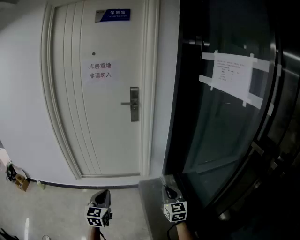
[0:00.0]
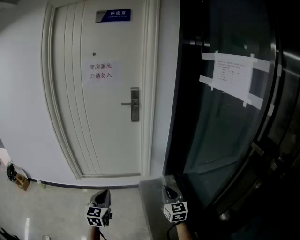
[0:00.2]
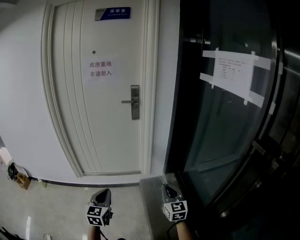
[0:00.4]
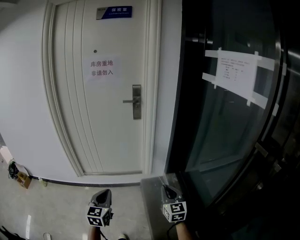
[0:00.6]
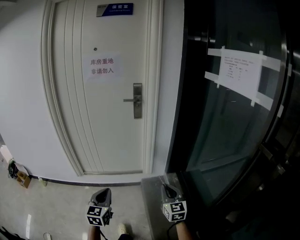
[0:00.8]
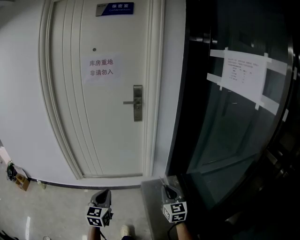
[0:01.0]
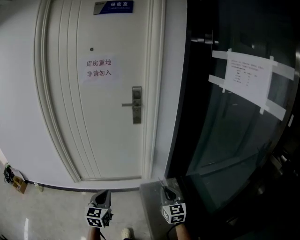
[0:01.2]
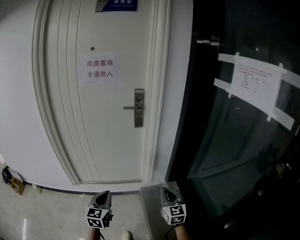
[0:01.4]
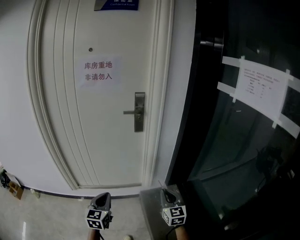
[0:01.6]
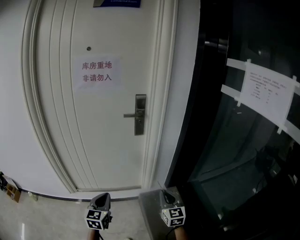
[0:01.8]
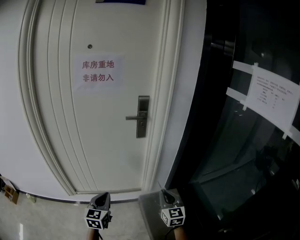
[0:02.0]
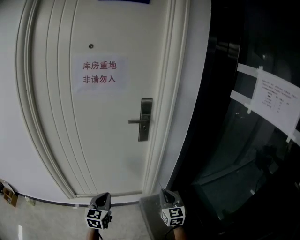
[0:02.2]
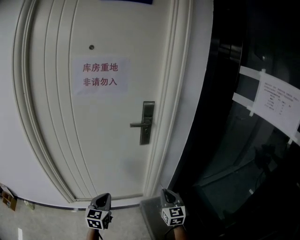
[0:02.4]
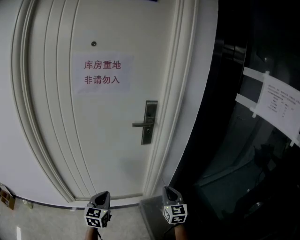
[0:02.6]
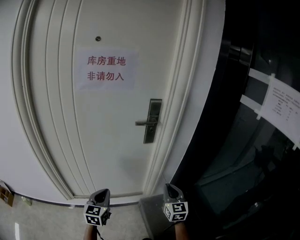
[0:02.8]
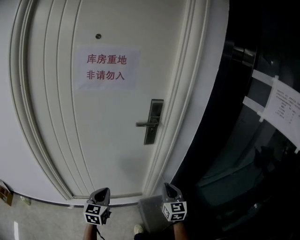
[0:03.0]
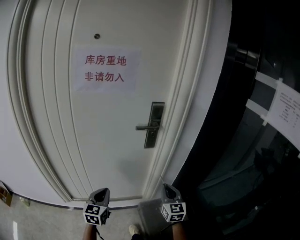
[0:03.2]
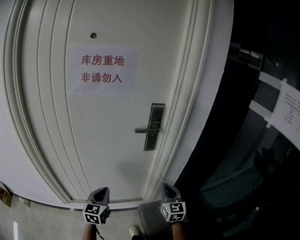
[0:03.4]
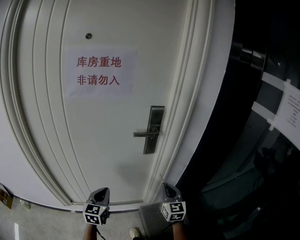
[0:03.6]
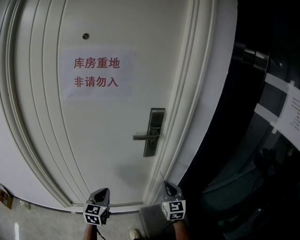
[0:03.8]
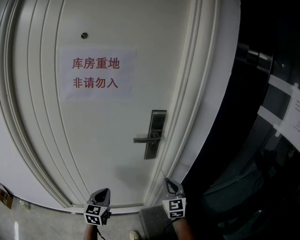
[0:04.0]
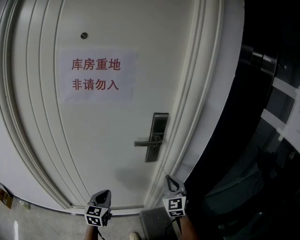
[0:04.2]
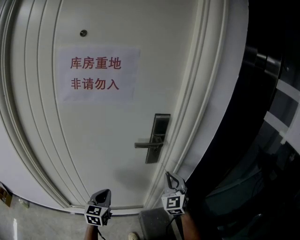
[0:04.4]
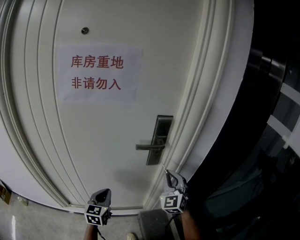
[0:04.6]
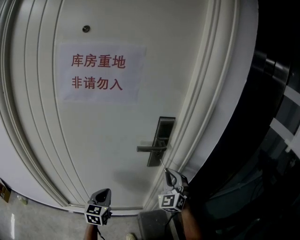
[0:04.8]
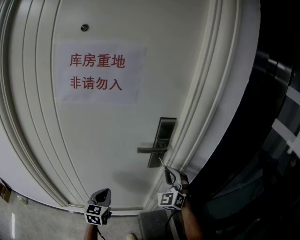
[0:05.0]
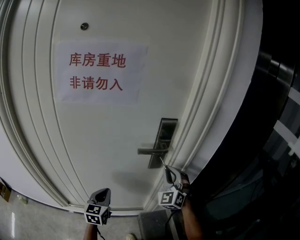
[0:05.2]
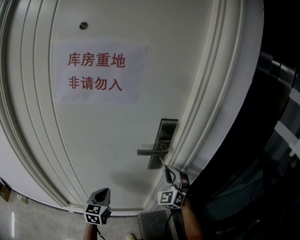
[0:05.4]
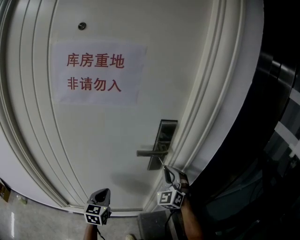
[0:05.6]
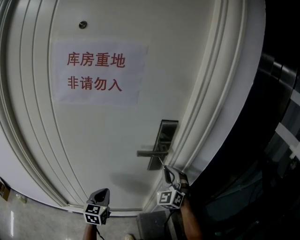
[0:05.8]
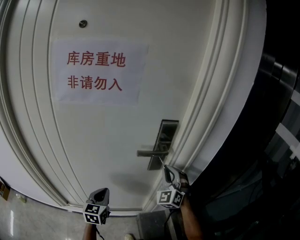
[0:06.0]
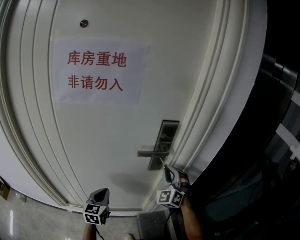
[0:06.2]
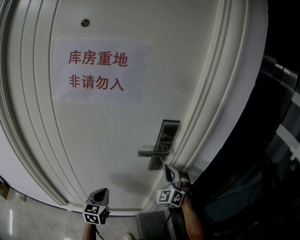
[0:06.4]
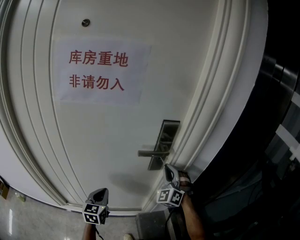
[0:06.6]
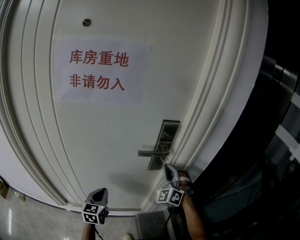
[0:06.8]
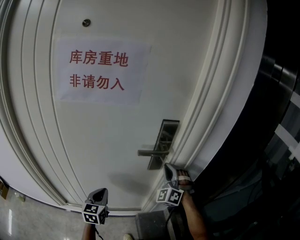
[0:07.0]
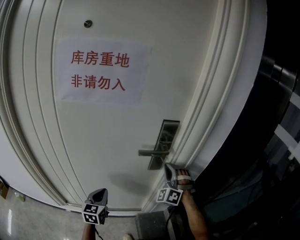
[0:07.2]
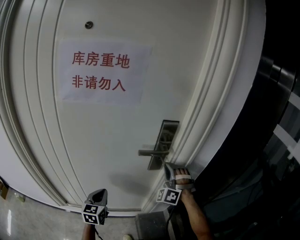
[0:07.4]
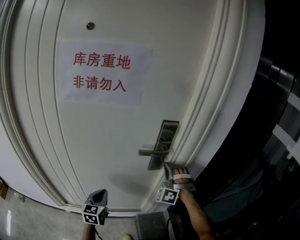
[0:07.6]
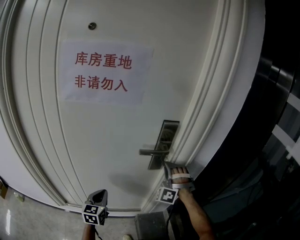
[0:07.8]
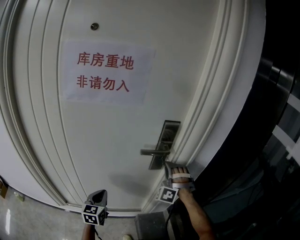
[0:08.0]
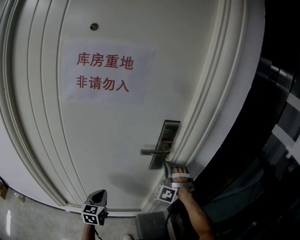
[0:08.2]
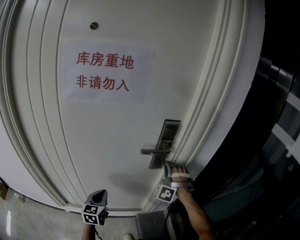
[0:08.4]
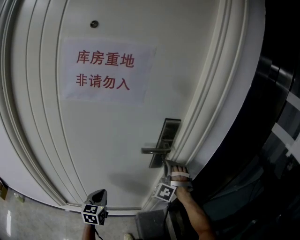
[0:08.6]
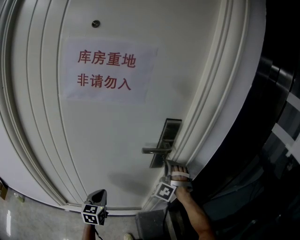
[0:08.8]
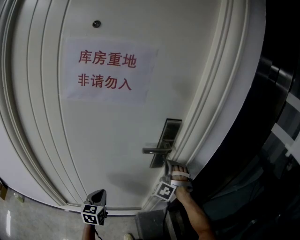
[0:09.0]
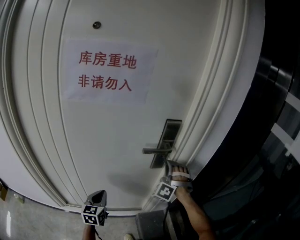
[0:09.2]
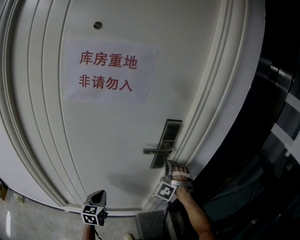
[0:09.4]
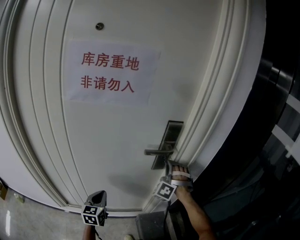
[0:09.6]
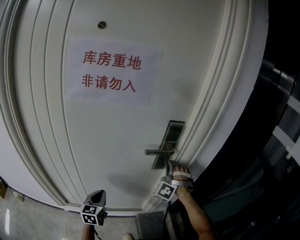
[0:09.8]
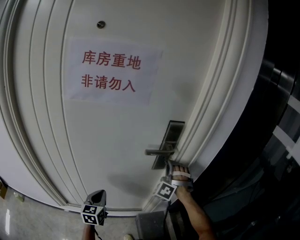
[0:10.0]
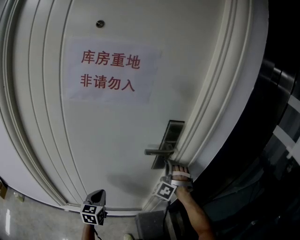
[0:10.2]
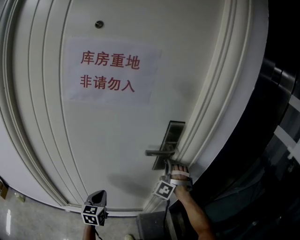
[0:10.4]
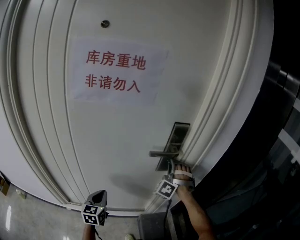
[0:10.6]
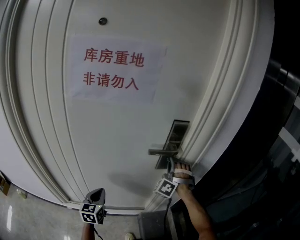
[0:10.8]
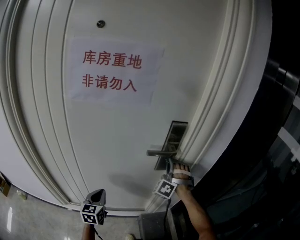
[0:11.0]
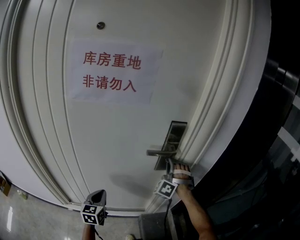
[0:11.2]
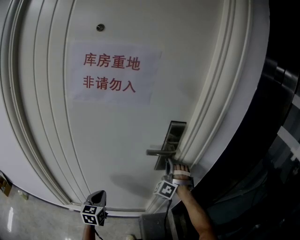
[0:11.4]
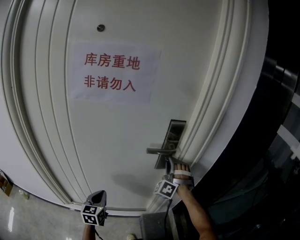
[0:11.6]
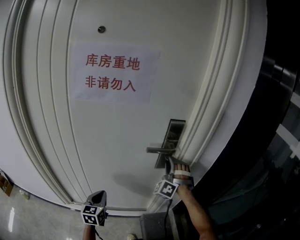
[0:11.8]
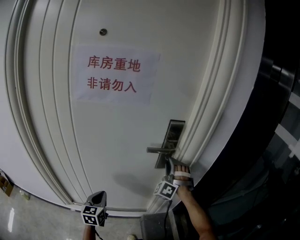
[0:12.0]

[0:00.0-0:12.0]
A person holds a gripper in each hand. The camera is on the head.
0:00.0 to 0:01.6: The grippers both shift forward by some 15 cm.
0:01.6 to 0:03.0: The two grippers go about 20 cm forward and to the left.
0:03.0 to 0:04.4: Both grippers travel together forward, approximately 15 cm. The right gripper swivels about 30 degrees.
0:04.4 to 0:06.0: The left gripper travels forward by about 5 cm, while the right gripper heads forward, covering approximately 10 cm, and rotates some 20 degrees.
0:06.0 to 0:07.6: The right gripper swivels approximately 40 degrees.
0:07.6 to 0:10.4: The grippers move only a little.
0:10.4 to 0:12.0: The right gripper opens up.

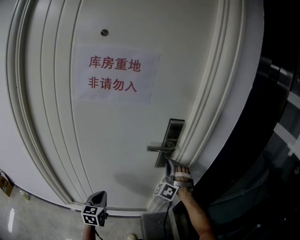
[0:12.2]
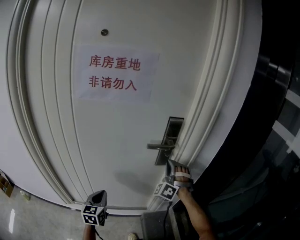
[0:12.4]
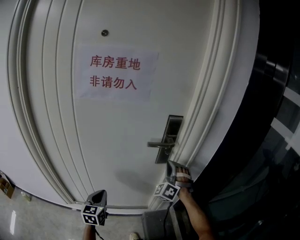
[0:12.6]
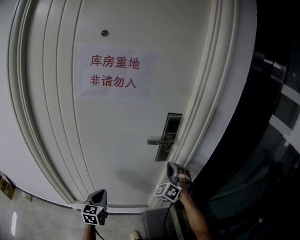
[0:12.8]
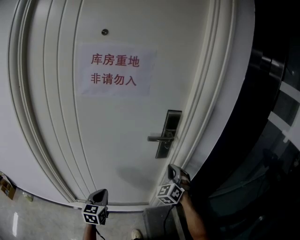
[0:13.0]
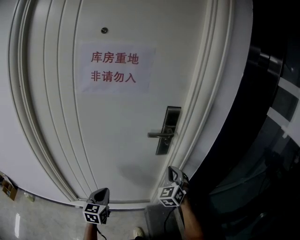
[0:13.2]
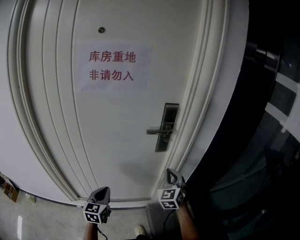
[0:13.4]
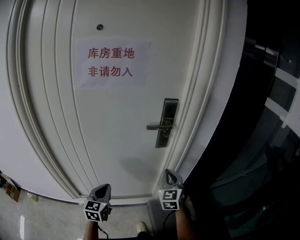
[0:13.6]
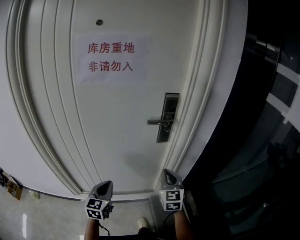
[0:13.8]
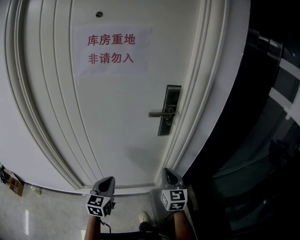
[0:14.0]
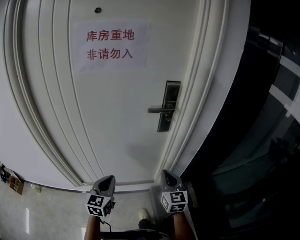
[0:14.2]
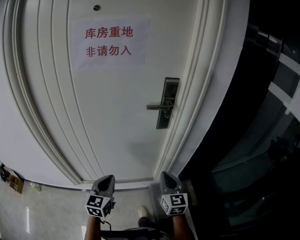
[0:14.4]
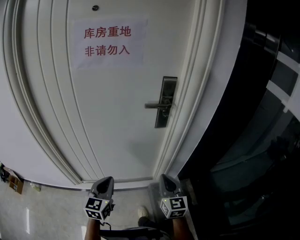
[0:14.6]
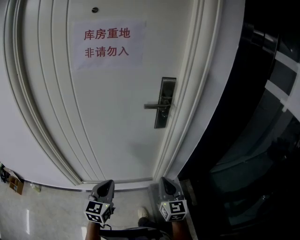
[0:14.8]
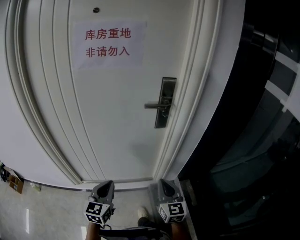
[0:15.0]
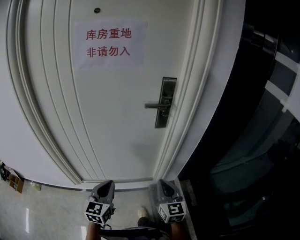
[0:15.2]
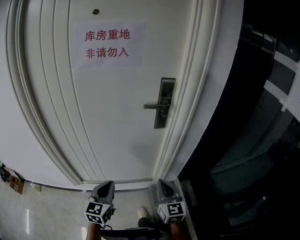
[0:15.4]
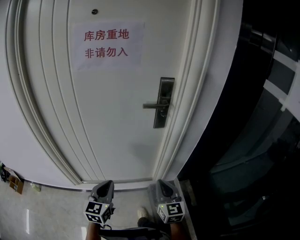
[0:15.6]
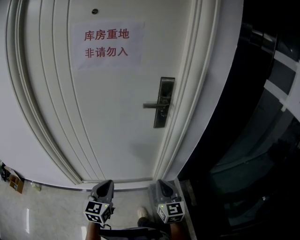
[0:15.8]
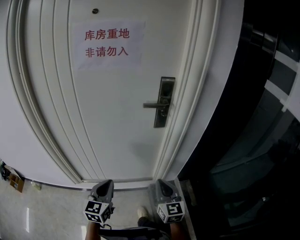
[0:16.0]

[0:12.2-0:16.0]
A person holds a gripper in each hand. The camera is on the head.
0:12.2 to 0:13.4: The left gripper heads backward, covering approximately 5 cm. Meanwhile the right gripper is displaced backward by some 15 cm, and rolls clockwise, seen from behind, by about 50 degrees.
0:13.4 to 0:14.8: The left gripper goes some 10 cm backward; the right gripper shifts about 15 cm backward, and turns by about 30 degrees.
0:14.8 to 0:16.0: The grippers stay close to where they were, moving slightly.

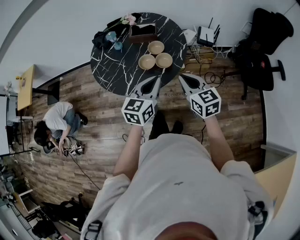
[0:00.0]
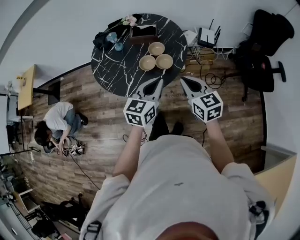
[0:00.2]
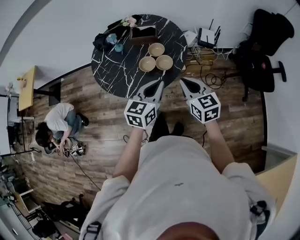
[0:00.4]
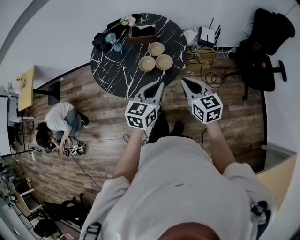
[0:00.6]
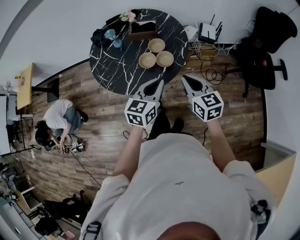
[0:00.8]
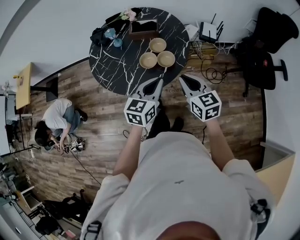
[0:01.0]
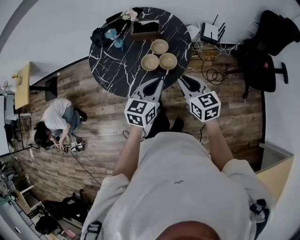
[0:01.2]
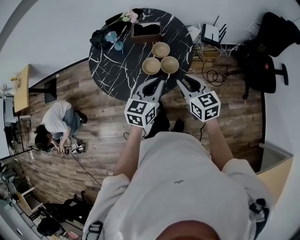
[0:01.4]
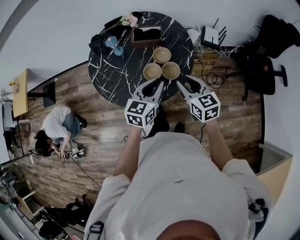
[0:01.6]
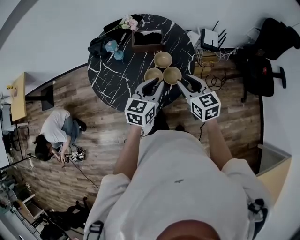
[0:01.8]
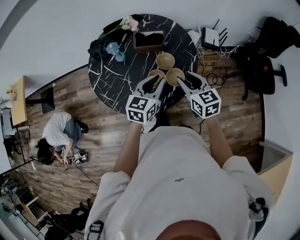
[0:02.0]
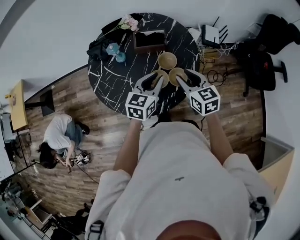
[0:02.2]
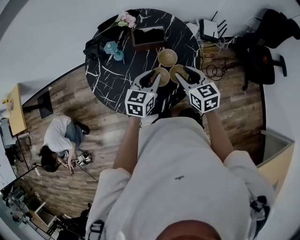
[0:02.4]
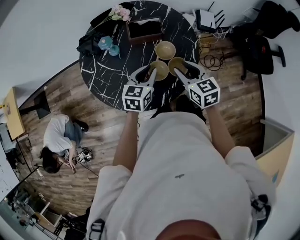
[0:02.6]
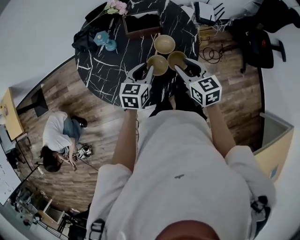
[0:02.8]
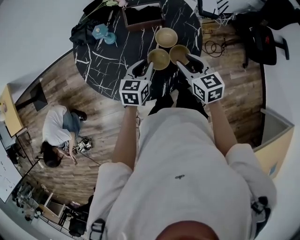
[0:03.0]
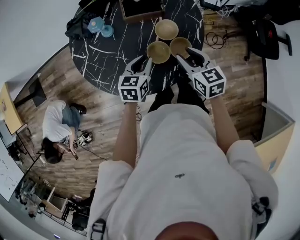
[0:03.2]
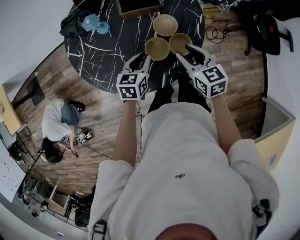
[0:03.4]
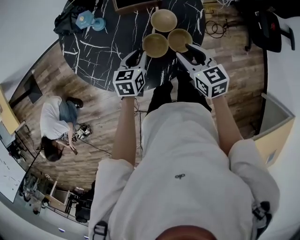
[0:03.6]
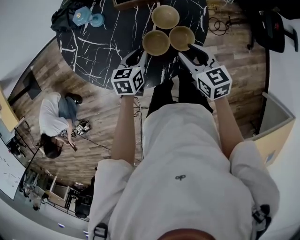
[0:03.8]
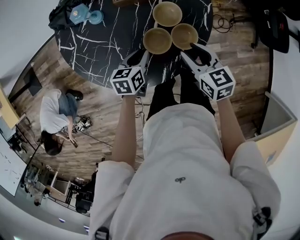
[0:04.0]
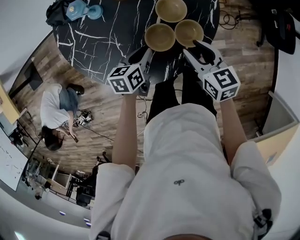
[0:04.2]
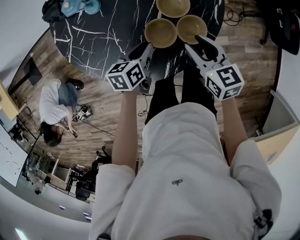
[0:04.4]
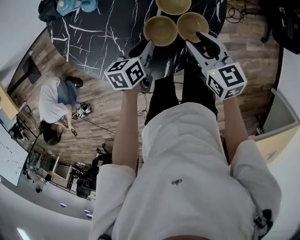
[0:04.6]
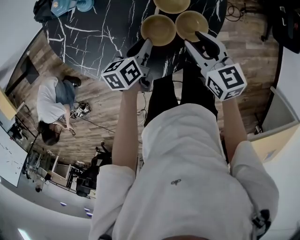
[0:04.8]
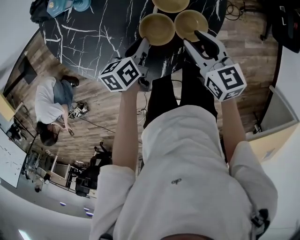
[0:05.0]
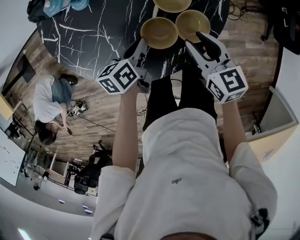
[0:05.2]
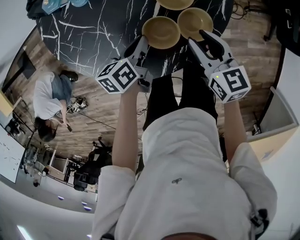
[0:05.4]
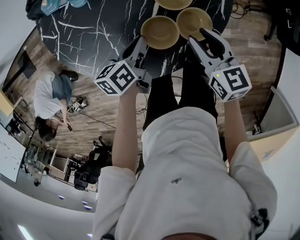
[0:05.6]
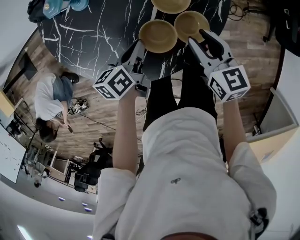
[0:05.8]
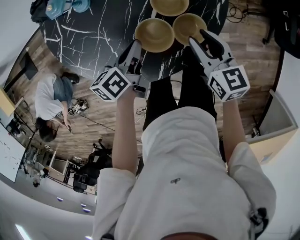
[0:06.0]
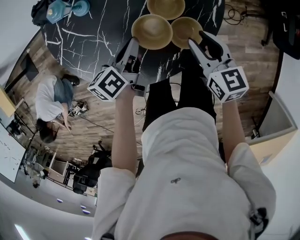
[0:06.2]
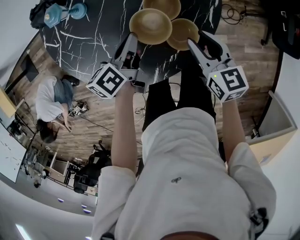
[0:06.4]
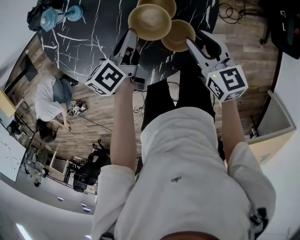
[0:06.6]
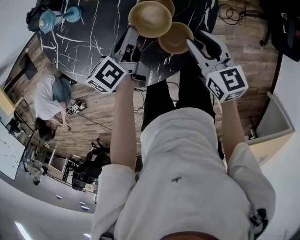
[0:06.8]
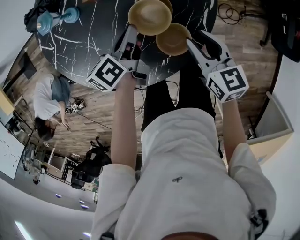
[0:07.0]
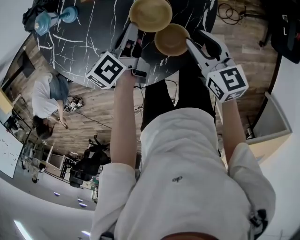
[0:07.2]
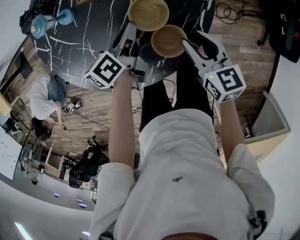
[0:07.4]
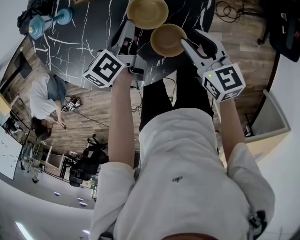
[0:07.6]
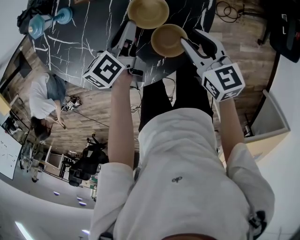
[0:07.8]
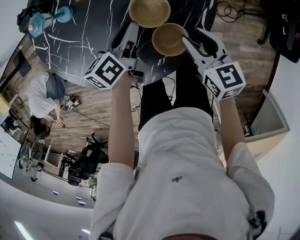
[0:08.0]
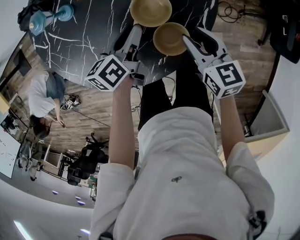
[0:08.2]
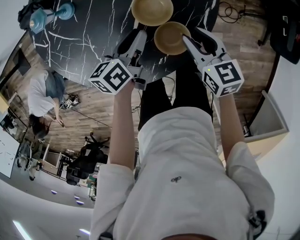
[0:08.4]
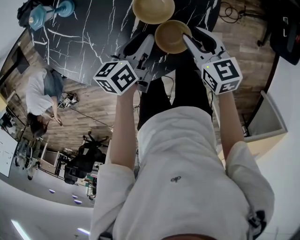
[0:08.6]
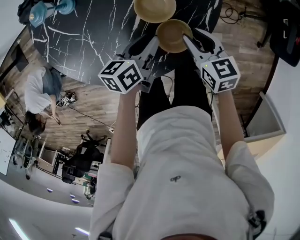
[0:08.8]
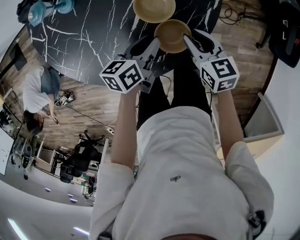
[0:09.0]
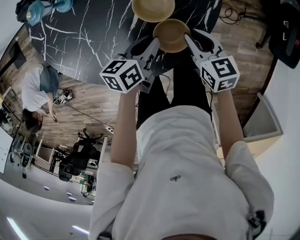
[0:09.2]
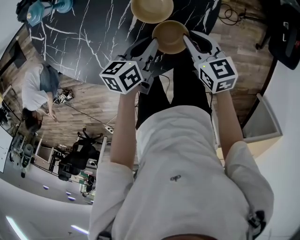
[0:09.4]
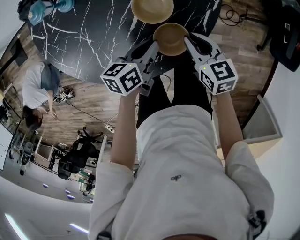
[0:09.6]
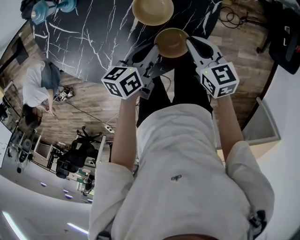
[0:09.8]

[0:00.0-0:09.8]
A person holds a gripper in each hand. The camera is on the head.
0:00.0 to 0:01.4: Both grippers move forward, some 5 cm. The right gripper opens up.
0:01.4 to 0:02.8: Both grippers move forward, to the left and downward, roughly 20 cm.
0:02.8 to 0:04.2: Both grippers move downward, roughly 15 cm. The left gripper swivels approximately 30 degrees.
0:04.2 to 0:05.6: The grippers stay close to where they were, moving slightly.
0:05.6 to 0:07.0: The right gripper travels to the right by approximately 5 cm, while the left gripper goes about 10 cm forward and to the right.
0:07.0 to 0:08.4: The left gripper opens up.
0:08.4 to 0:09.8: The right gripper closes; the left gripper moves backward, roughly 5 cm.
